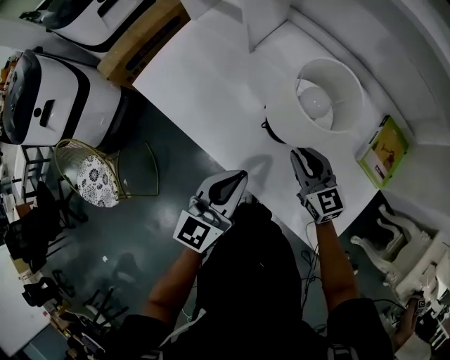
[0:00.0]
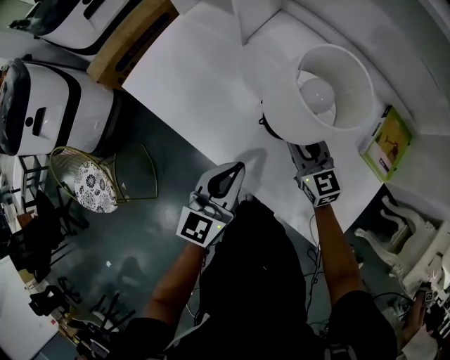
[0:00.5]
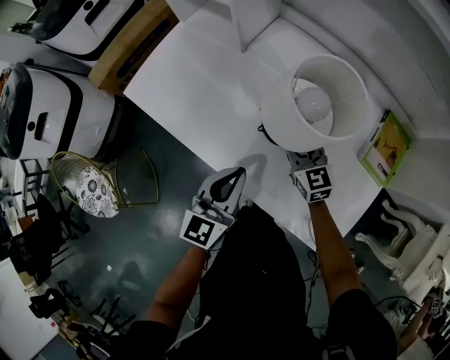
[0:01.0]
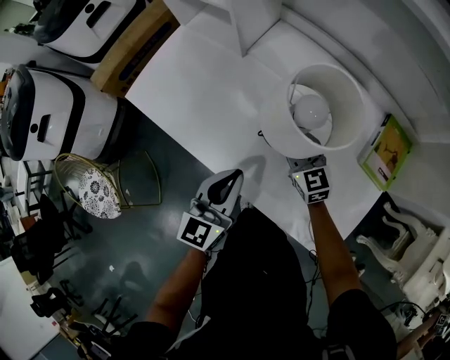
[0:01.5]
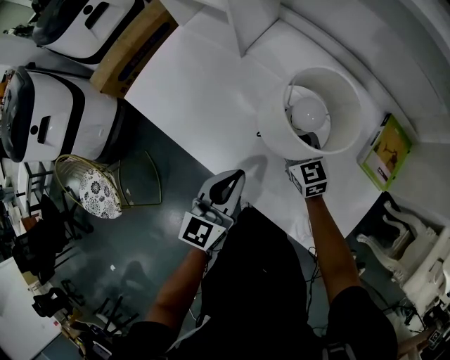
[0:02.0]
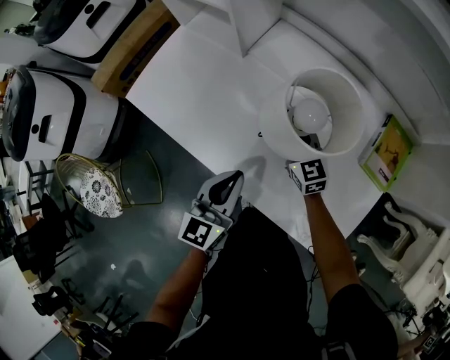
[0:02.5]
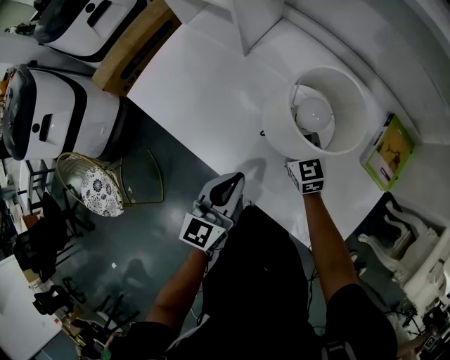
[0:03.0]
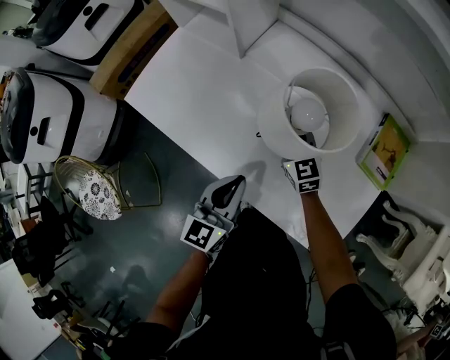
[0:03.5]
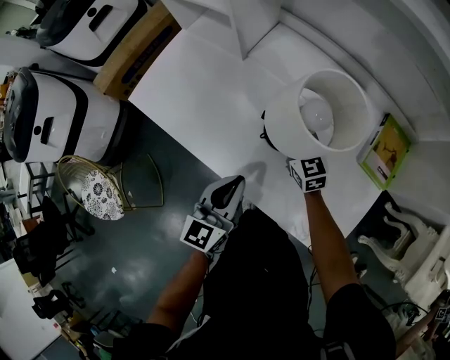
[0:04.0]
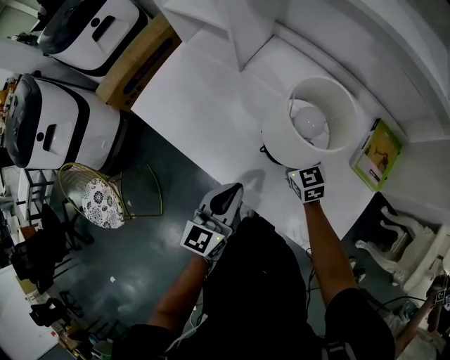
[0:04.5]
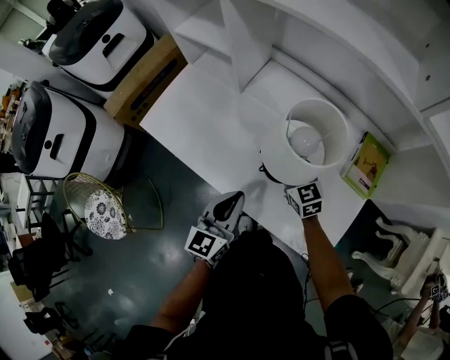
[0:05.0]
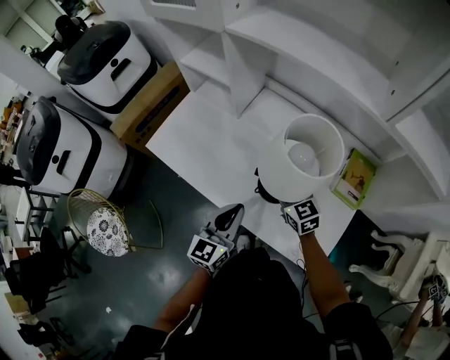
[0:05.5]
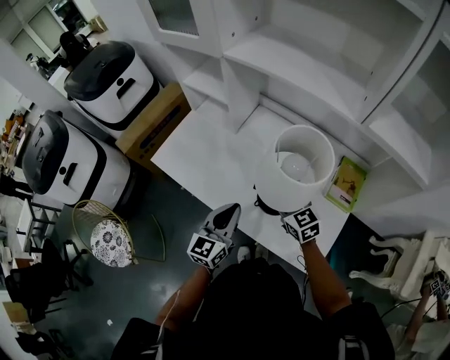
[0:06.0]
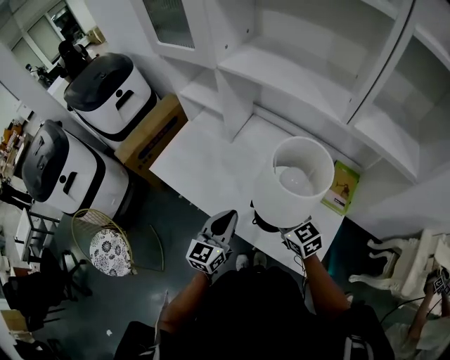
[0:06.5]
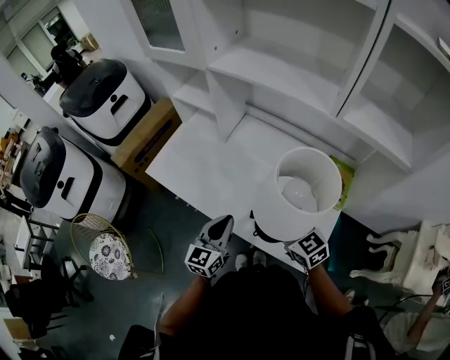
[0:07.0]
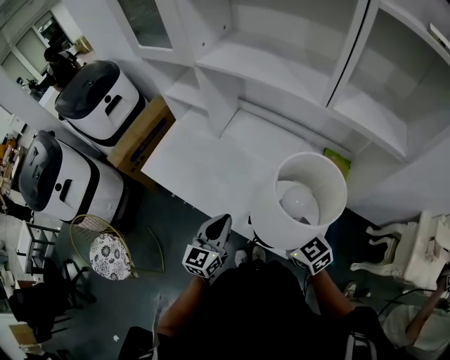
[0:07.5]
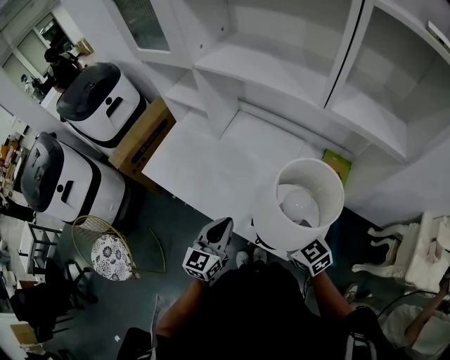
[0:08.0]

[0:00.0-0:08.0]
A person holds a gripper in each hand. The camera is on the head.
0:00.0 to 0:02.0: The left gripper changes place by approximately 5 cm. The right gripper moves forward and downward, about 10 cm, and opens its fingers.
0:02.0 to 0:04.0: The grippers move only a little.
0:04.0 to 0:06.0: The left gripper heads upward, covering about 10 cm, while the right gripper is displaced upward and backward by approximately 20 cm.
0:06.0 to 0:08.0: The left gripper goes approximately 5 cm backward, while the right gripper goes roughly 15 cm backward.

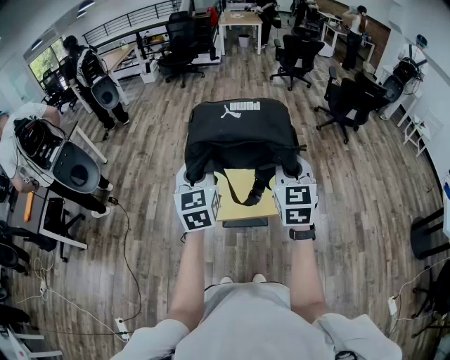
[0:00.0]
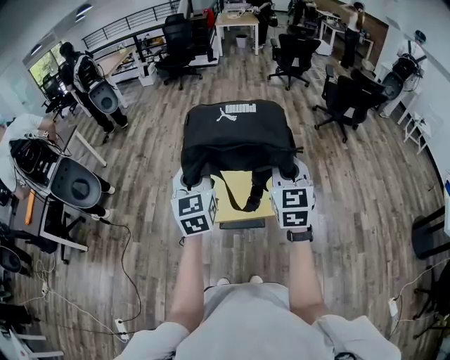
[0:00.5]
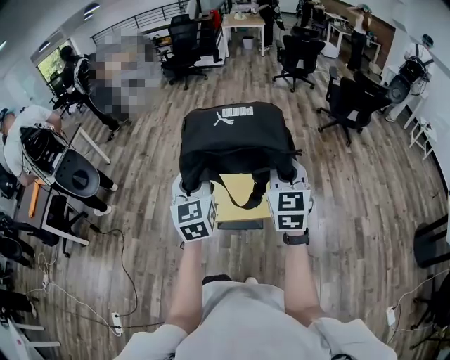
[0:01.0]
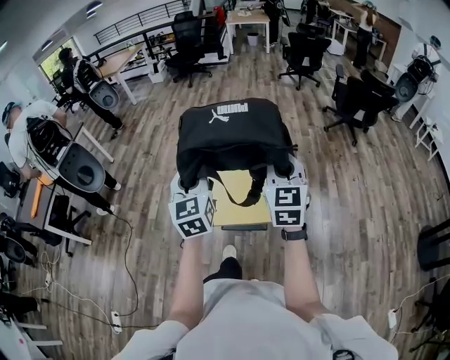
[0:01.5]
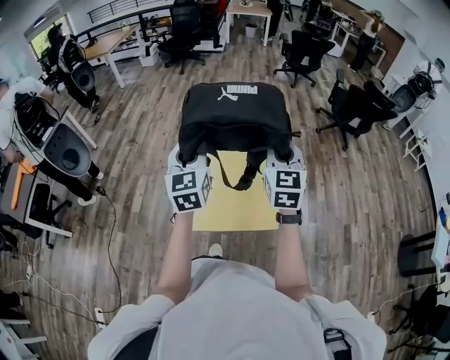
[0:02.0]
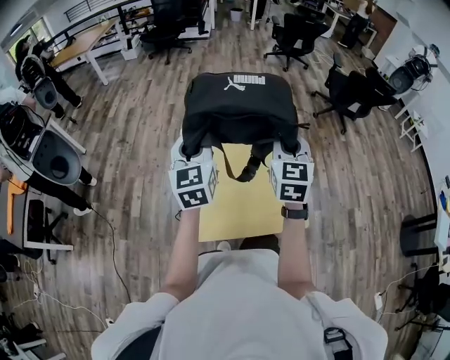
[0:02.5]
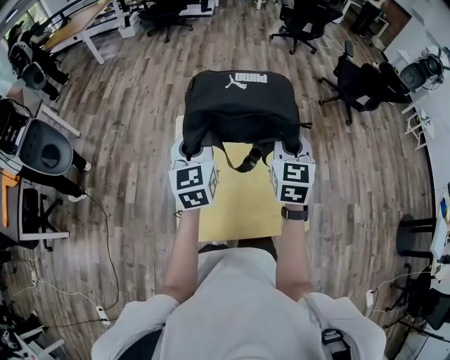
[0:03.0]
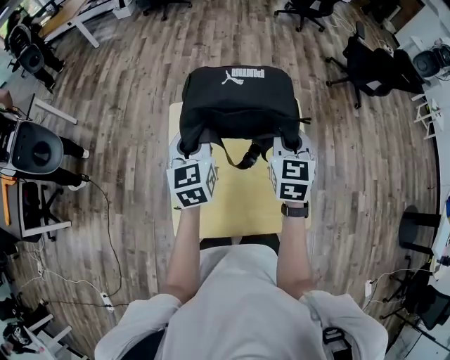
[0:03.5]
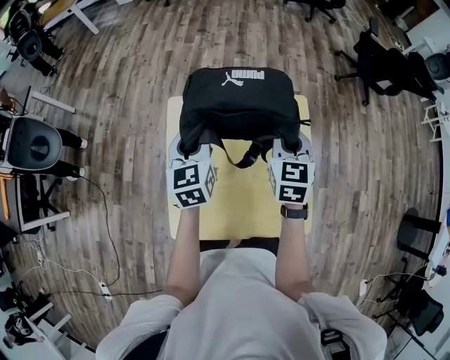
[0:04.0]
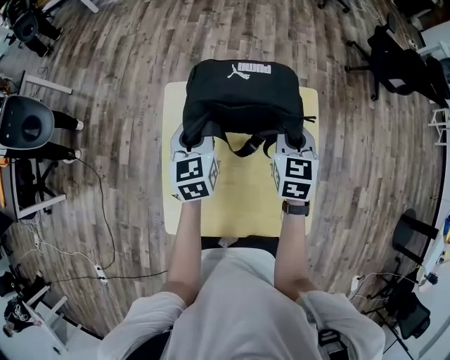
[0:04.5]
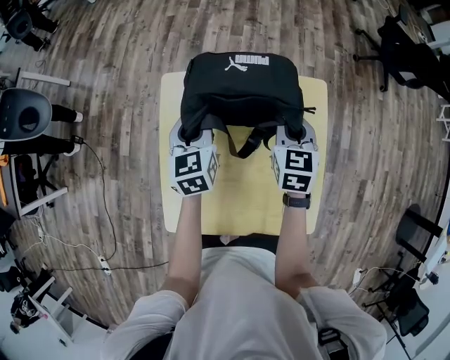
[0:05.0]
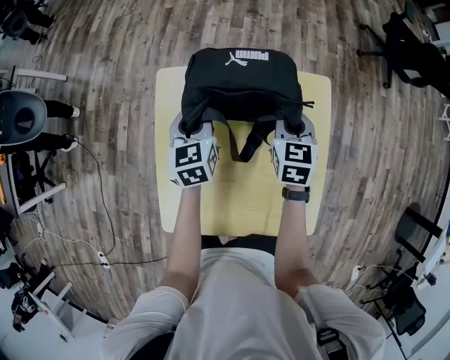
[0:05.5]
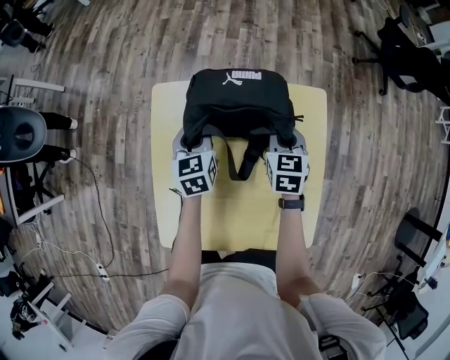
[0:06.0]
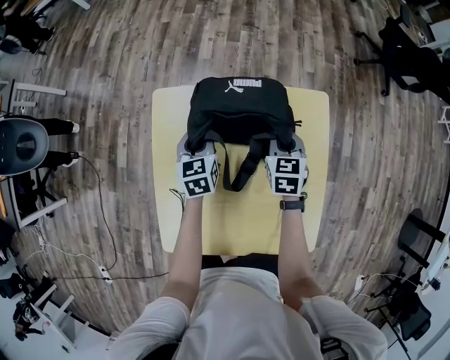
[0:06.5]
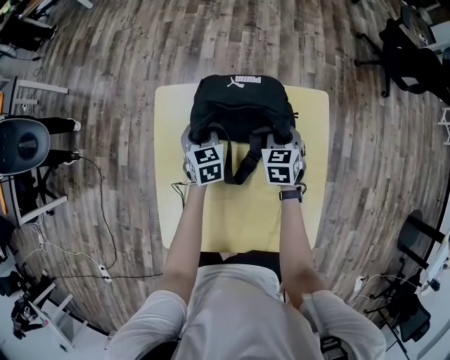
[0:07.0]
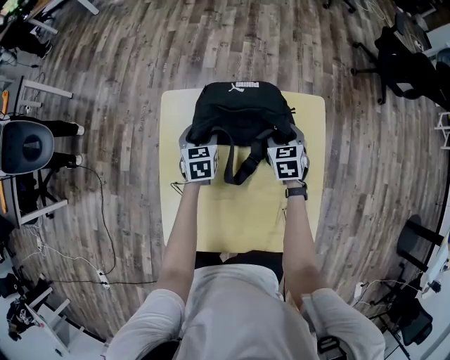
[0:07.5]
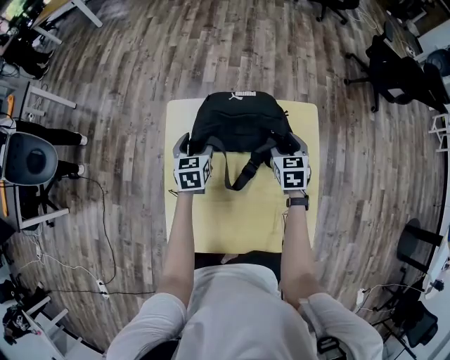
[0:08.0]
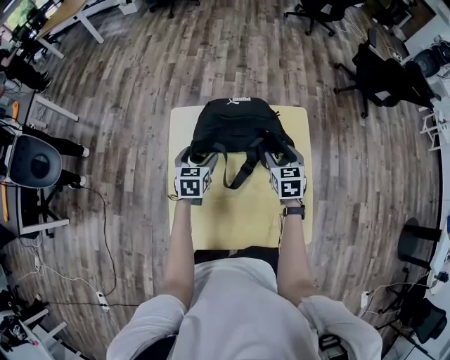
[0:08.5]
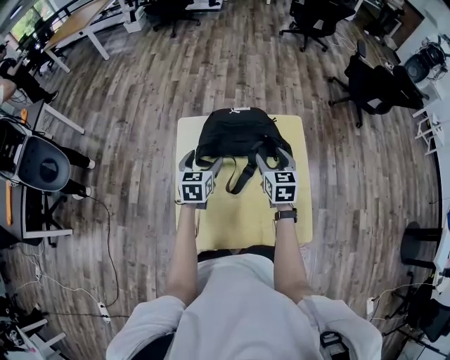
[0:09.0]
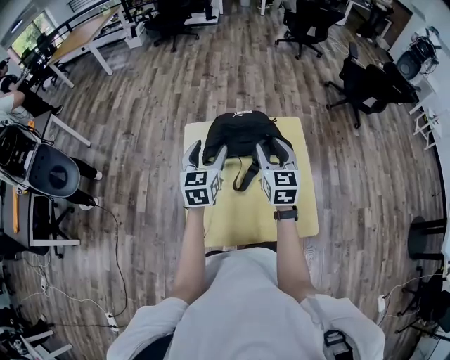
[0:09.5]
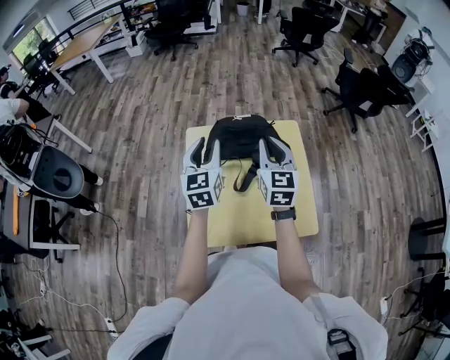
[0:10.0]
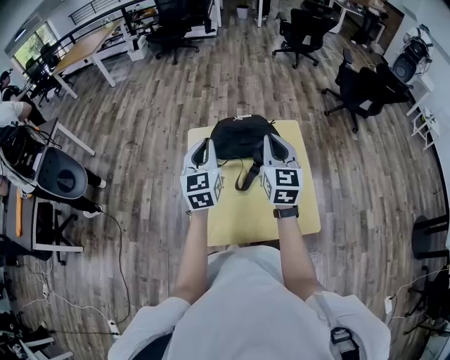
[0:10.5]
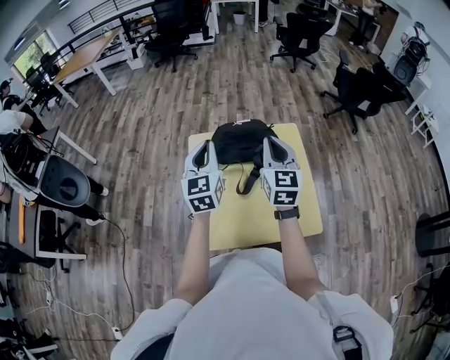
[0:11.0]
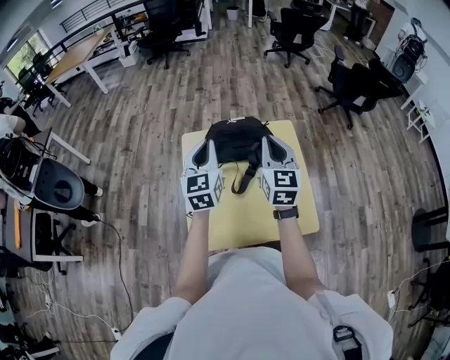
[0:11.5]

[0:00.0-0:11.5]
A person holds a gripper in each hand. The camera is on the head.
0:00.0 to 0:02.0: The two grippers go about 15 cm forward.
0:02.0 to 0:04.0: The two grippers go roughly 30 cm forward and downward. The right gripper rotates roughly 20 degrees.
0:04.0 to 0:06.0: The two grippers go some 20 cm downward.
0:06.0 to 0:07.5: The right gripper opens its fingers. Meanwhile the left gripper moves downward, approximately 5 cm.
0:07.5 to 0:09.5: Both grippers move upward and backward, some 30 cm. The left gripper swivels roughly 30 degrees, while the right gripper tilts its fingers approximately 30 degrees upward.
0:09.5 to 0:11.5: The two grippers go roughly 5 cm upward. The left gripper closes its fingers. Meanwhile the right gripper closes its fingers.

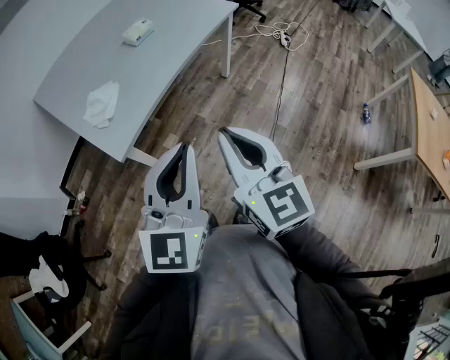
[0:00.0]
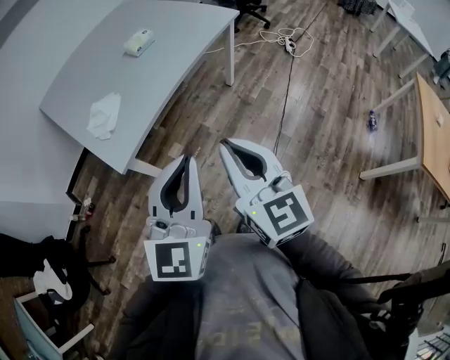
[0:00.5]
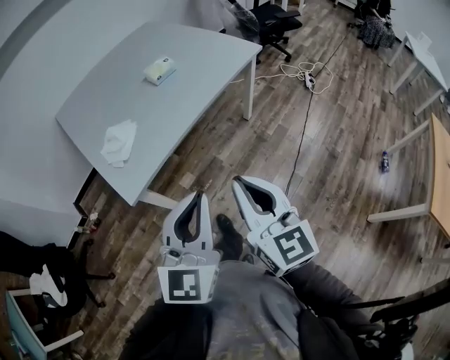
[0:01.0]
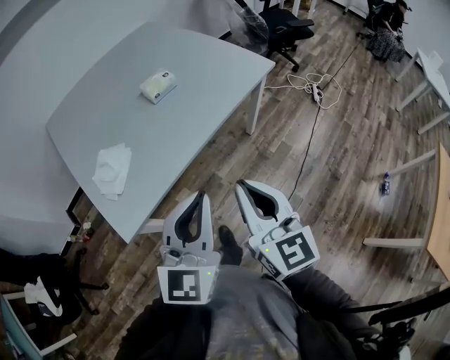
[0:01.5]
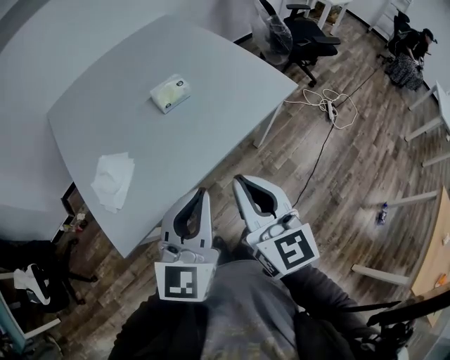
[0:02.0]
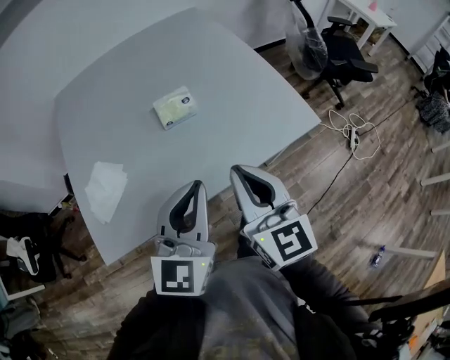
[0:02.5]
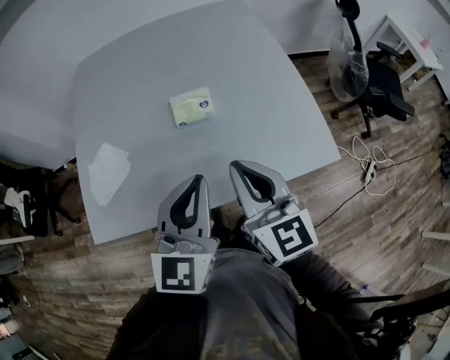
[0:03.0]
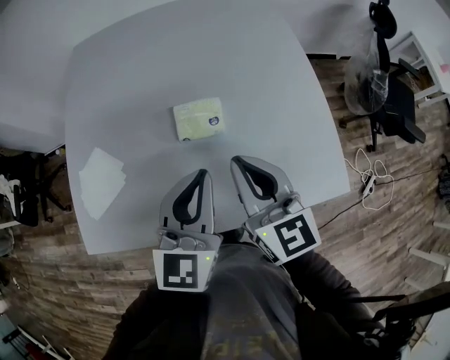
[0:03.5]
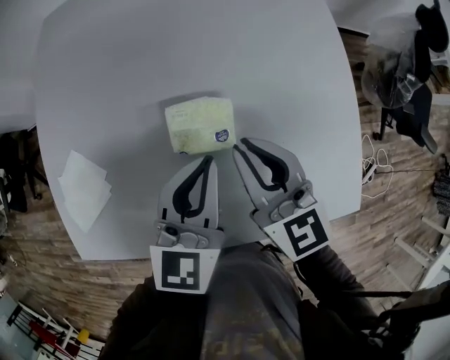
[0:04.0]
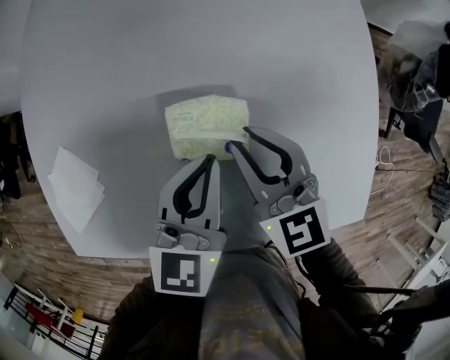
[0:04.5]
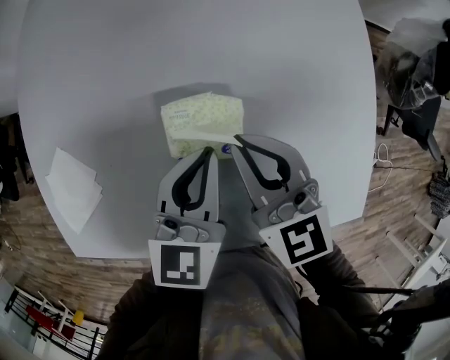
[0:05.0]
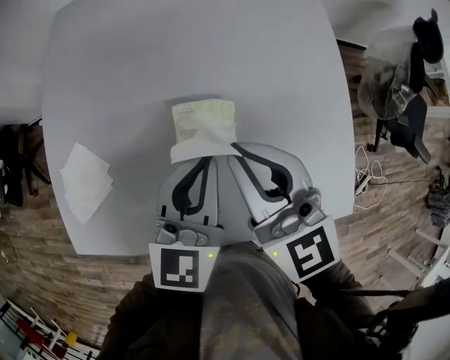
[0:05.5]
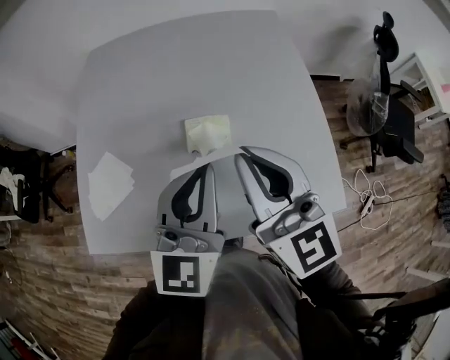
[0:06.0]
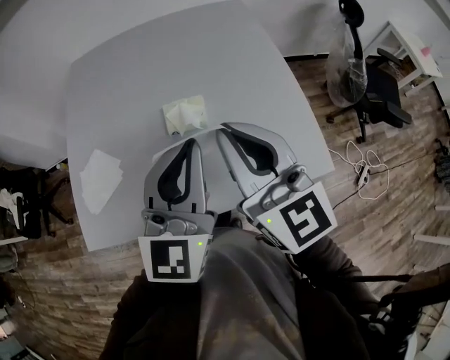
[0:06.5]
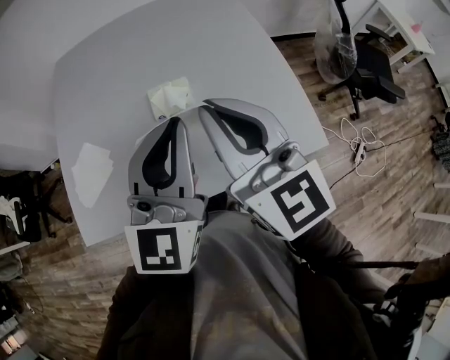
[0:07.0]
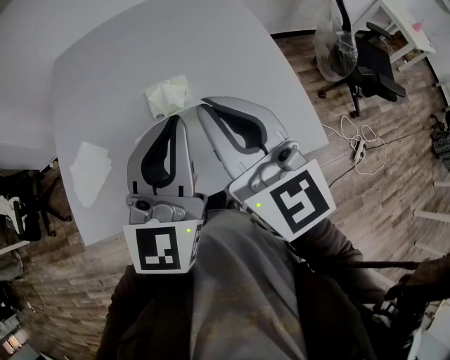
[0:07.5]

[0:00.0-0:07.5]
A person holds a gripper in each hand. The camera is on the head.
0:00.0 to 0:02.0: Both grippers move forward, approximately 35 cm.
0:02.0 to 0:04.0: The pair of grippers is taken about 40 cm. The right gripper rotates roughly 40 degrees. Meanwhile the left gripper swivels roughly 40 degrees.
0:04.0 to 0:05.5: The right gripper heads upward, covering roughly 10 cm. Meanwhile the left gripper travels downward and back again, some 5 cm each way.
0:05.5 to 0:07.5: The right gripper shifts about 20 cm backward and upward; the left gripper goes about 25 cm upward and backward, and changes its angle by some 20 degrees.
